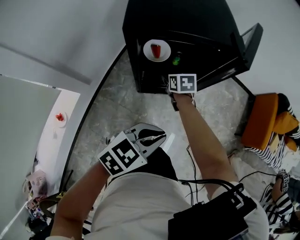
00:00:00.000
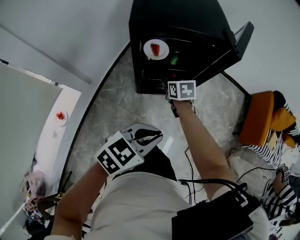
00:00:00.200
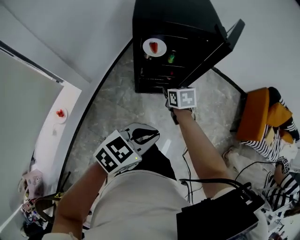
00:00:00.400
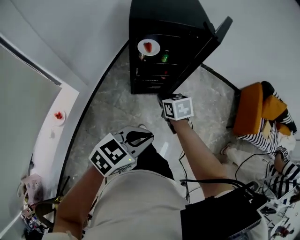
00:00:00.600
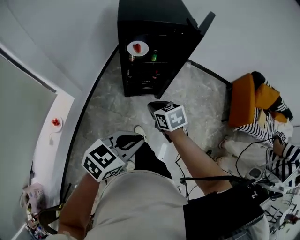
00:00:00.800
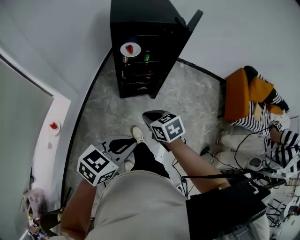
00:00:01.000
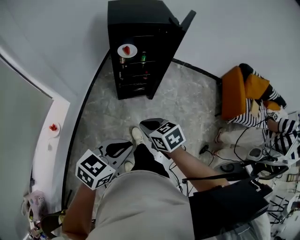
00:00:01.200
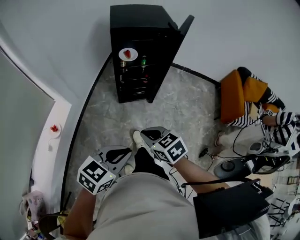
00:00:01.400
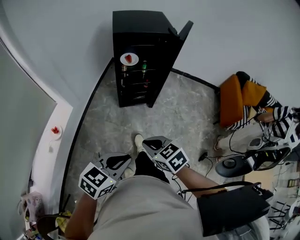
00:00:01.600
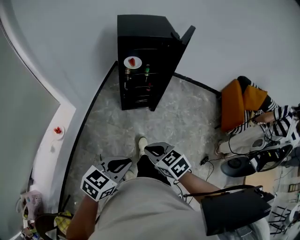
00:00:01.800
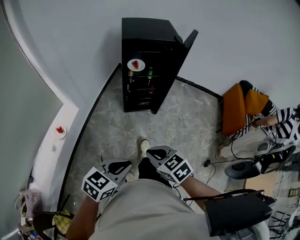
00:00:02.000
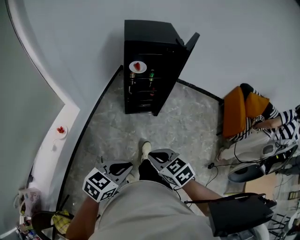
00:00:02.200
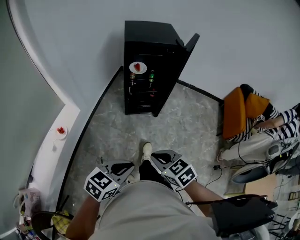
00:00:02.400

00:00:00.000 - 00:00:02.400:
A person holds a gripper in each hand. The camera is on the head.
00:00:00.000 - 00:00:01.200: The left gripper travels backward by roughly 30 cm, while the right gripper moves backward, some 50 cm, and closes its fingers.
00:00:01.200 - 00:00:02.400: The left gripper heads backward, covering roughly 5 cm, while the right gripper moves backward, roughly 10 cm.

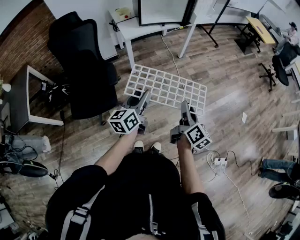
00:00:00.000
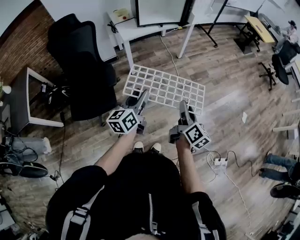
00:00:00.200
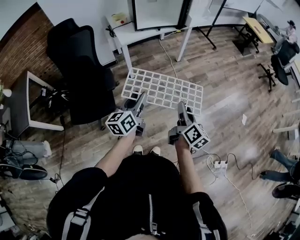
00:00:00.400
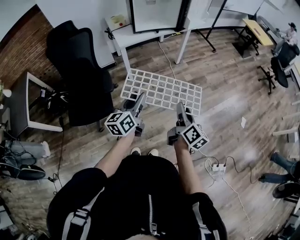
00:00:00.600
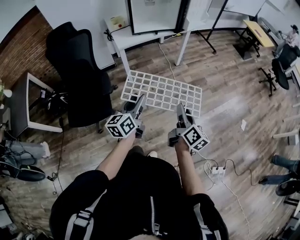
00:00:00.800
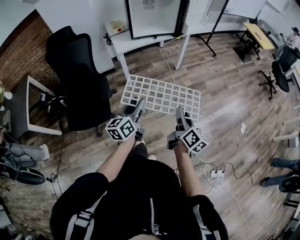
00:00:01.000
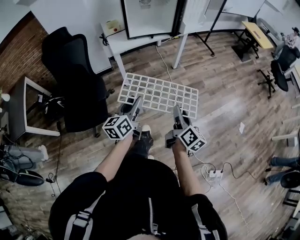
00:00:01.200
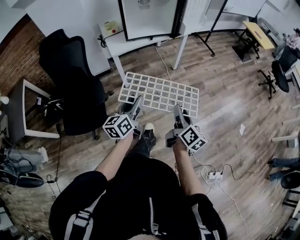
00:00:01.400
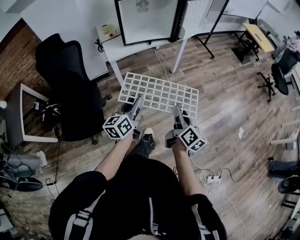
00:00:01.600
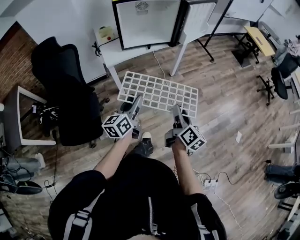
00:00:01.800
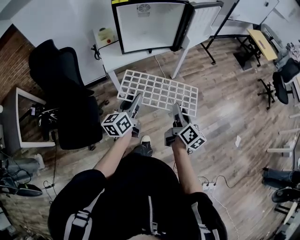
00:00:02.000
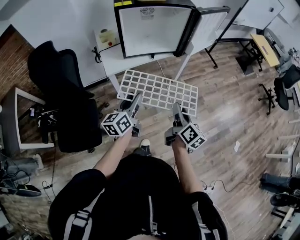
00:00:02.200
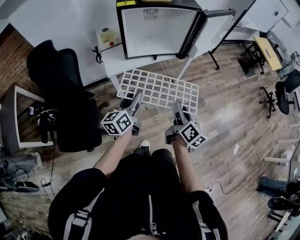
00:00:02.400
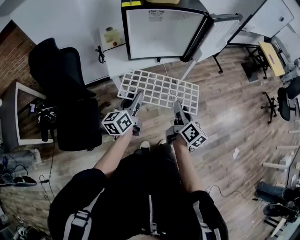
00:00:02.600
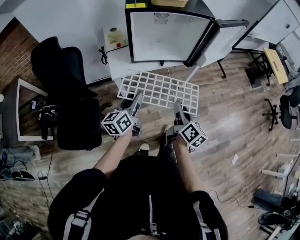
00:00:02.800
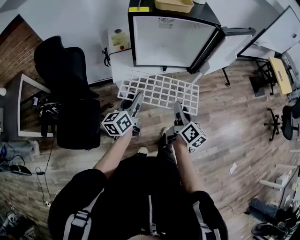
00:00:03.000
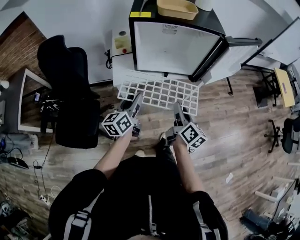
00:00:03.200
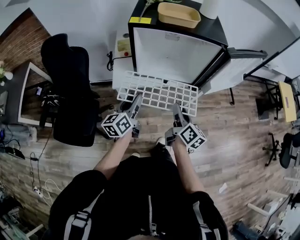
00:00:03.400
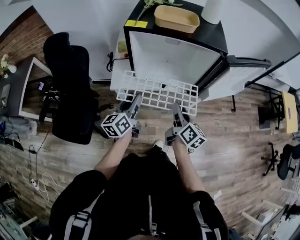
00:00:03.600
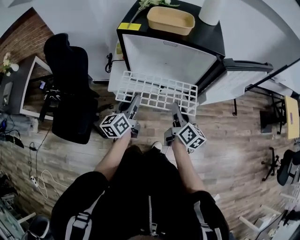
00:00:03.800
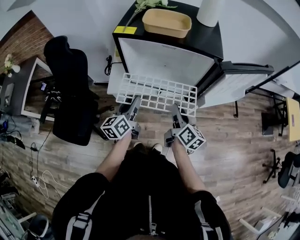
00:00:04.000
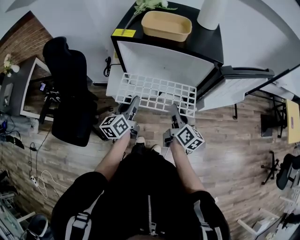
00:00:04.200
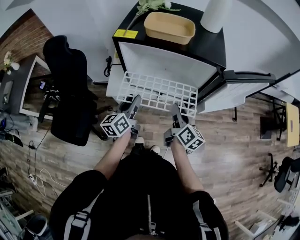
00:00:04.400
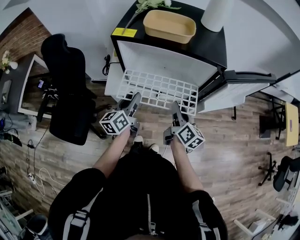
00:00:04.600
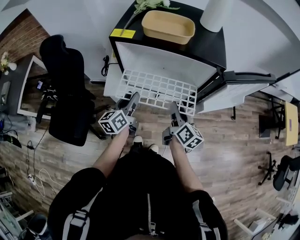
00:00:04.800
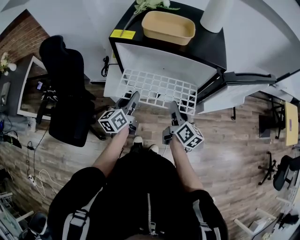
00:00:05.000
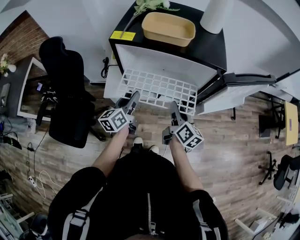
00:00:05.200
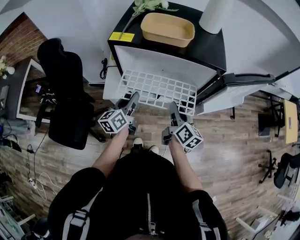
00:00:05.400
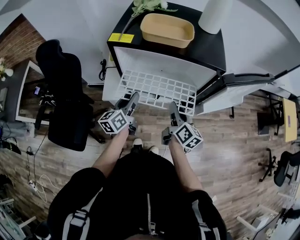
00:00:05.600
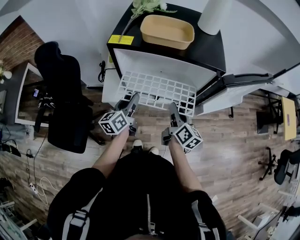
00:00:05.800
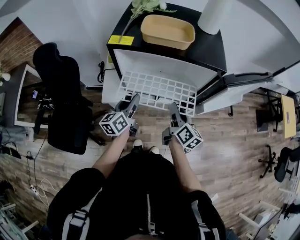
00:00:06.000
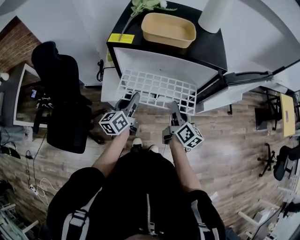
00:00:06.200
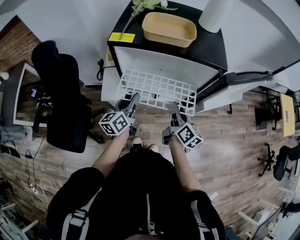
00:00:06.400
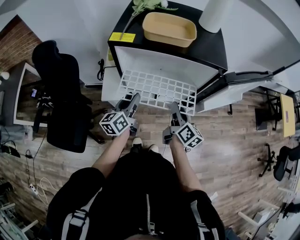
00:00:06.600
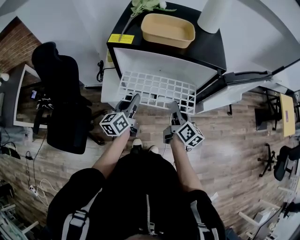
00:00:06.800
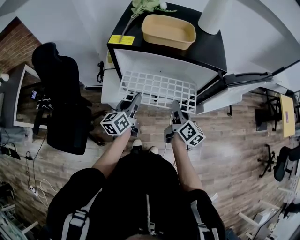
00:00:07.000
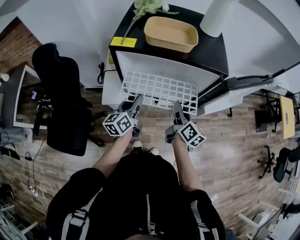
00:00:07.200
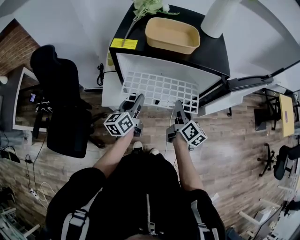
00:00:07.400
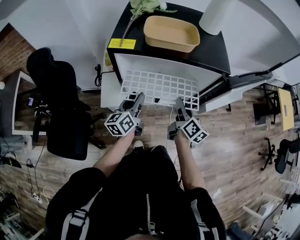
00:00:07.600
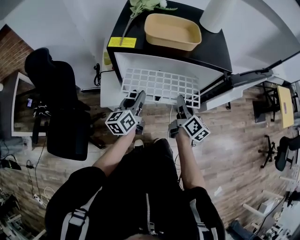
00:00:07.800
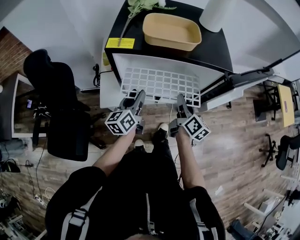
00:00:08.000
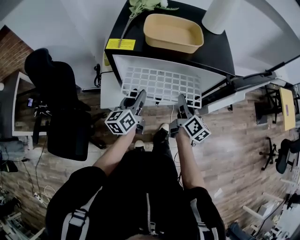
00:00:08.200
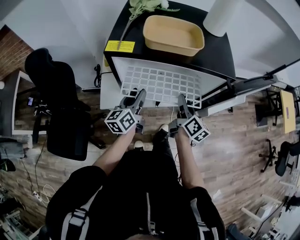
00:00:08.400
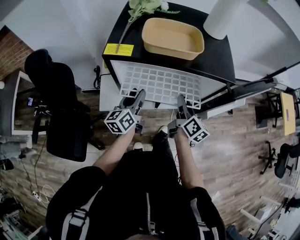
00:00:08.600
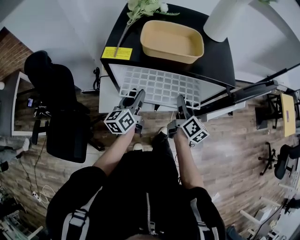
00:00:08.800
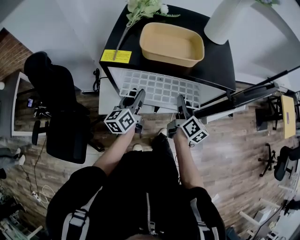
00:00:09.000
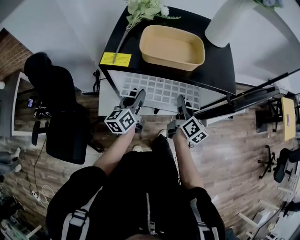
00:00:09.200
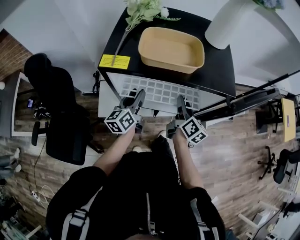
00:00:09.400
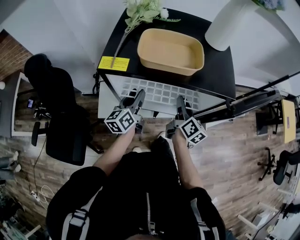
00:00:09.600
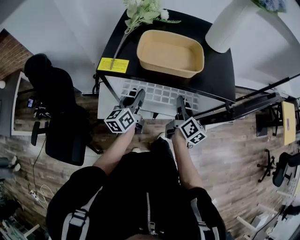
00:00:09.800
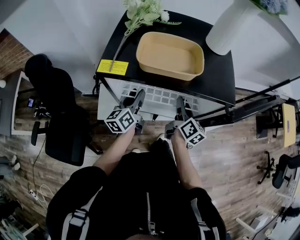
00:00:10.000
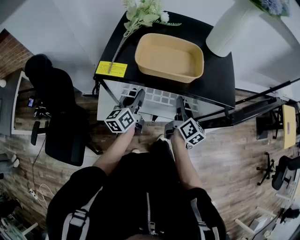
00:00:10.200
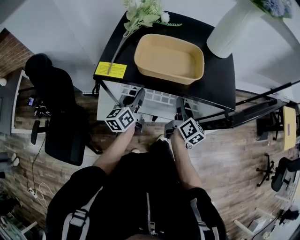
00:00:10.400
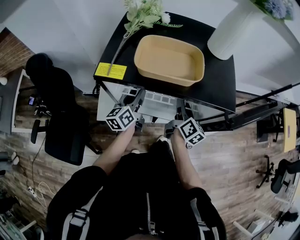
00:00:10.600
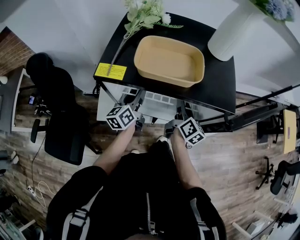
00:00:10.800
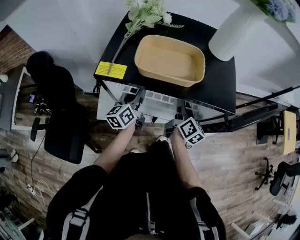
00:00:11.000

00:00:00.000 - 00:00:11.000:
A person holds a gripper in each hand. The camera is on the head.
00:00:00.000 - 00:00:01.600: Both grippers move forward, approximately 20 cm.
00:00:01.600 - 00:00:03.200: The two grippers go approximately 35 cm forward.
00:00:03.200 - 00:00:04.800: Both grippers travel together forward and to the right, about 15 cm.
00:00:04.800 - 00:00:07.800: The grippers make only small movements.
00:00:07.800 - 00:00:09.400: Both grippers travel together forward, roughly 10 cm.
00:00:09.400 - 00:00:11.000: The grippers make only small movements.

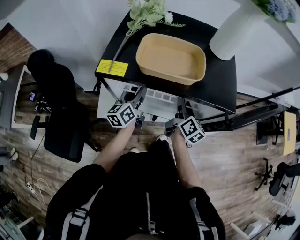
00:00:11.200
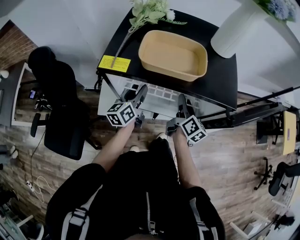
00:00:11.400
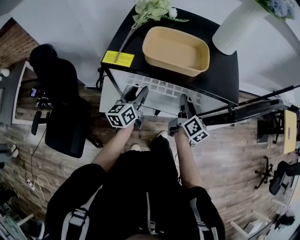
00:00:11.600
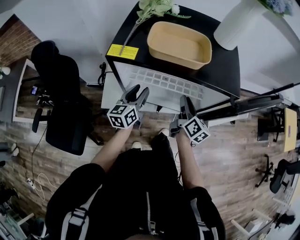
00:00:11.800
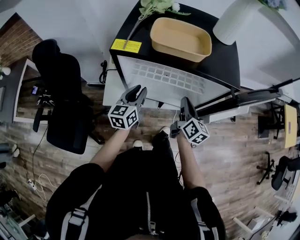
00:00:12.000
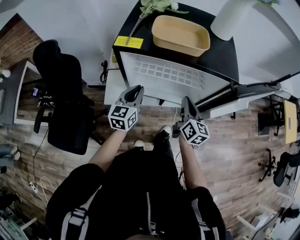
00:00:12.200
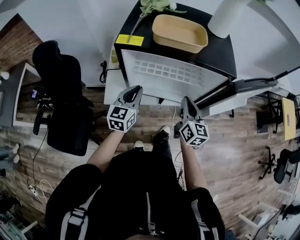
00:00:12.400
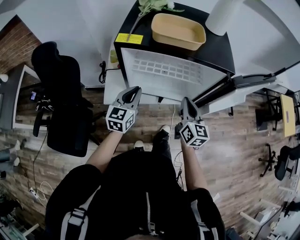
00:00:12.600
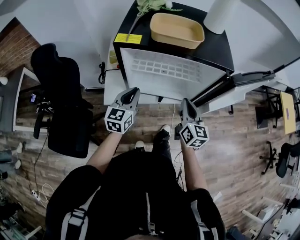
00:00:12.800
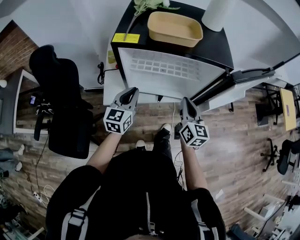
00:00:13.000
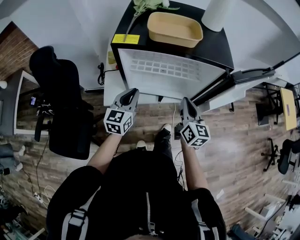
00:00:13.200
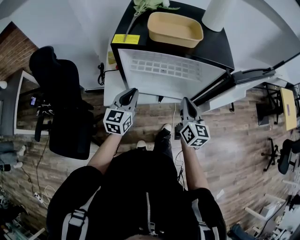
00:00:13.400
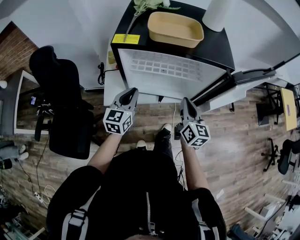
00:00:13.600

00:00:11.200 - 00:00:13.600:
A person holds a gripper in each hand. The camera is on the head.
00:00:11.200 - 00:00:12.400: The two grippers go approximately 15 cm backward. The left gripper changes its angle by roughly 30 degrees, and closes up. The right gripper changes its angle by roughly 30 degrees, and closes up.
00:00:12.400 - 00:00:13.600: The grippers stay close to where they were, moving slightly.

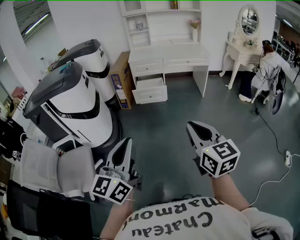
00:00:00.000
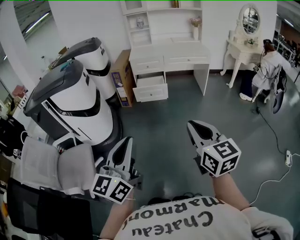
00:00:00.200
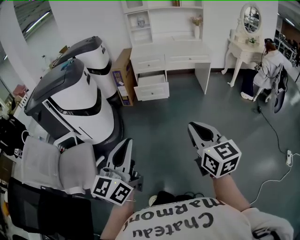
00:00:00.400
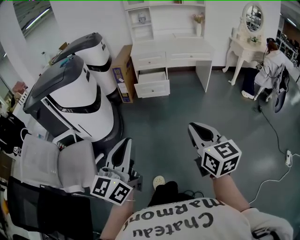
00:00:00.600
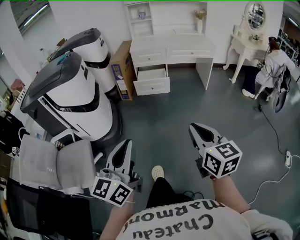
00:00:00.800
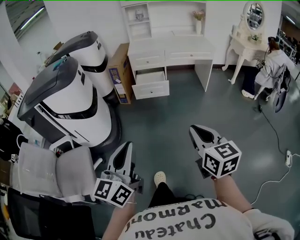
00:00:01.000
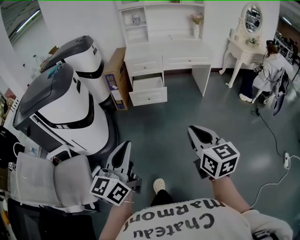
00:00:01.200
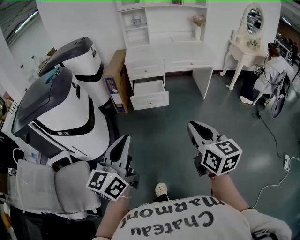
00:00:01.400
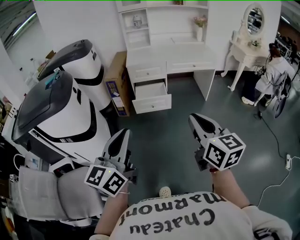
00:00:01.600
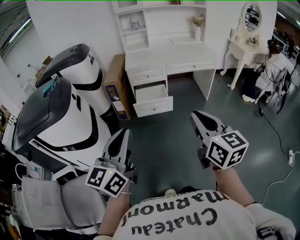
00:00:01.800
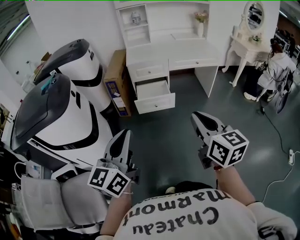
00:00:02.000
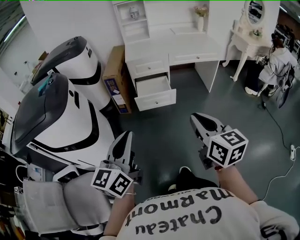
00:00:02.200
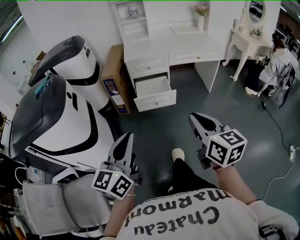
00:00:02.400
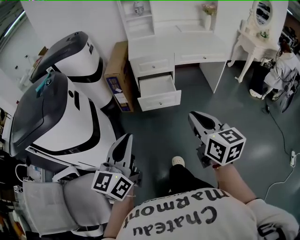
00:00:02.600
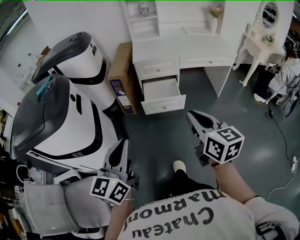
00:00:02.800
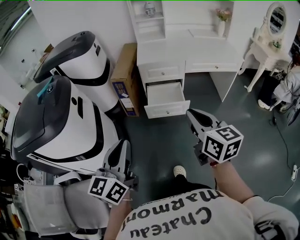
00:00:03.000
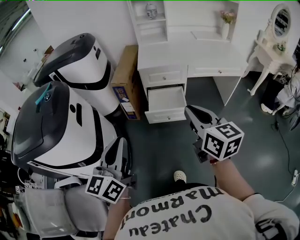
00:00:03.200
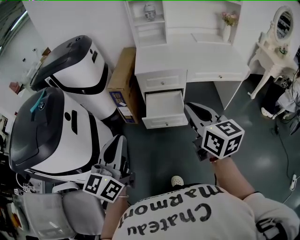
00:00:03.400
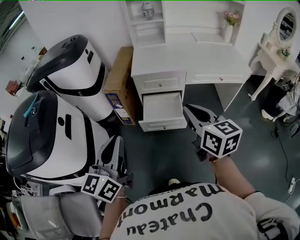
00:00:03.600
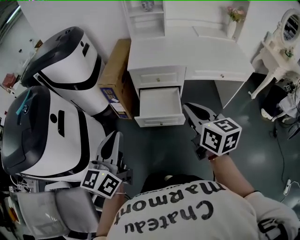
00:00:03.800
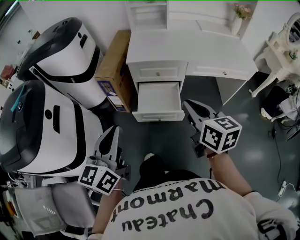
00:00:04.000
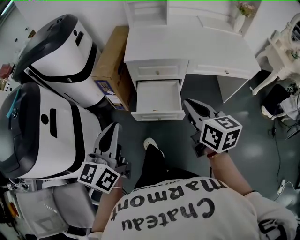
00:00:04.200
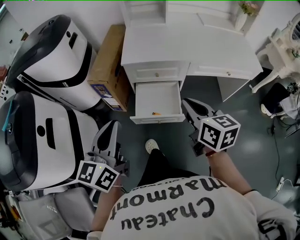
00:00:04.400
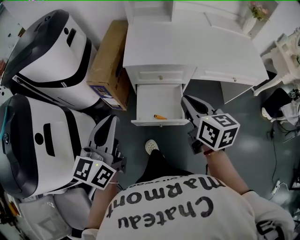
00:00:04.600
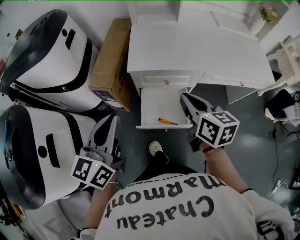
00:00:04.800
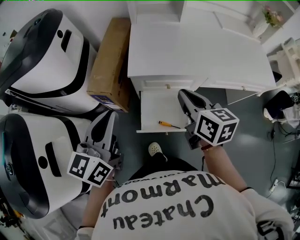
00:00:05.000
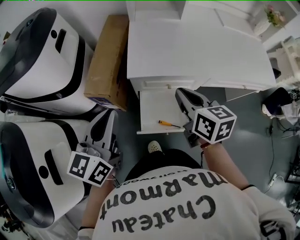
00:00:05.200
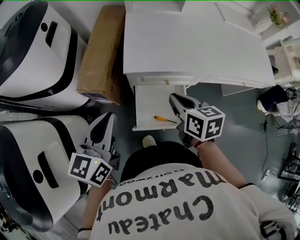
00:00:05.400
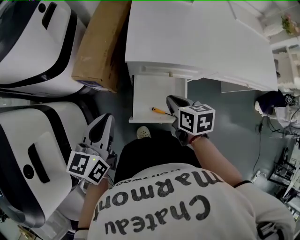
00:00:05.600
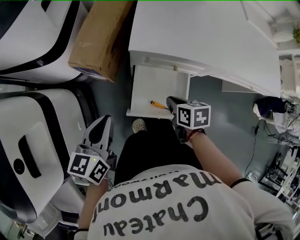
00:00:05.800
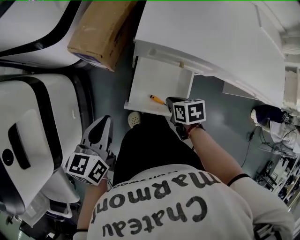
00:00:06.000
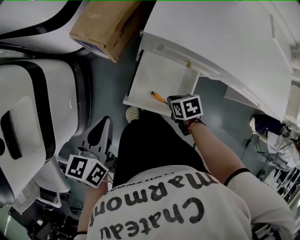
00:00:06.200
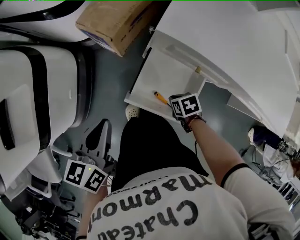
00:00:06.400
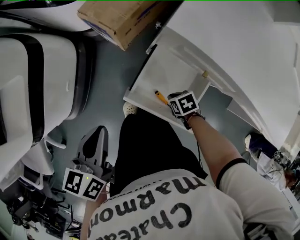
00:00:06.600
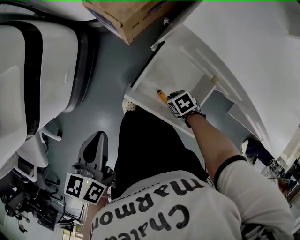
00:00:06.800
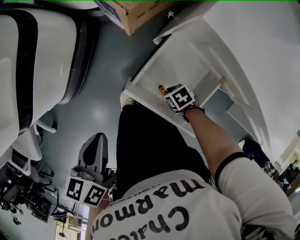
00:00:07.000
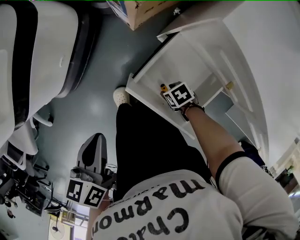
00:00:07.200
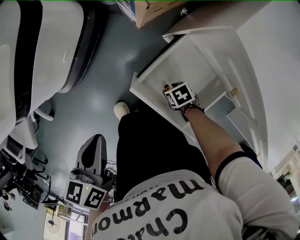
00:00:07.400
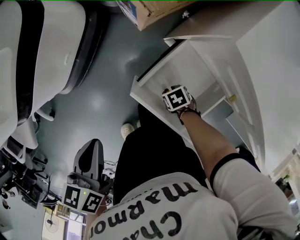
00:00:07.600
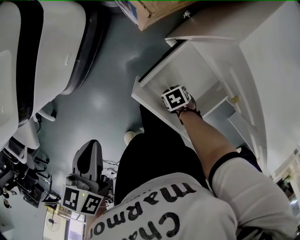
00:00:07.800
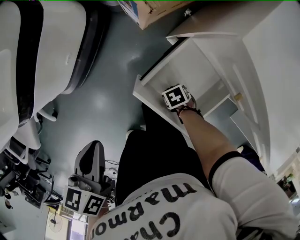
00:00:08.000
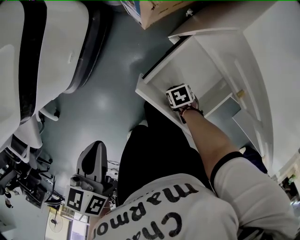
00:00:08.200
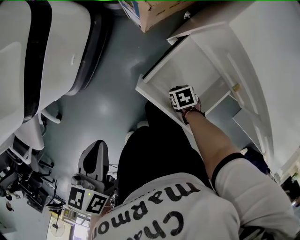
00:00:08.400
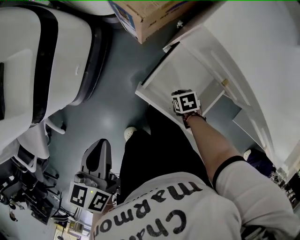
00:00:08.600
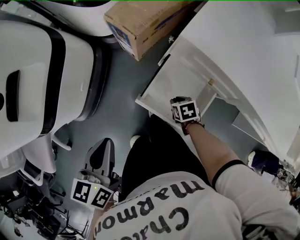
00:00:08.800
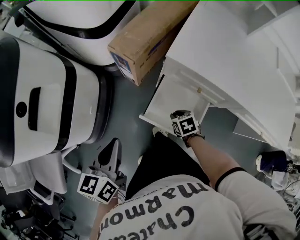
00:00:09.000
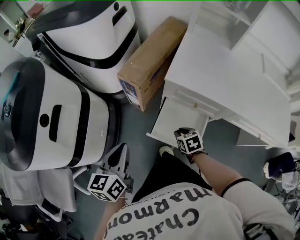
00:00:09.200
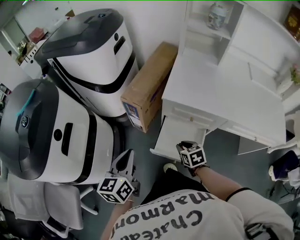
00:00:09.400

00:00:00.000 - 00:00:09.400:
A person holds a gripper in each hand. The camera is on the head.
00:00:00.000 - 00:00:01.600: The grippers both shift forward by some 25 cm.
00:00:01.600 - 00:00:03.200: The grippers both shift forward by some 30 cm.
00:00:03.200 - 00:00:04.800: Both grippers travel together forward, approximately 40 cm.
00:00:04.800 - 00:00:06.200: The left gripper is displaced downward by about 25 cm, and swivels roughly 40 degrees, while the right gripper shifts approximately 35 cm downward, and tips its fingers downward by roughly 50 degrees.
00:00:06.200 - 00:00:07.800: The left gripper ends up about 10 cm from where it was, and turns by roughly 30 degrees; the right gripper shifts some 20 cm downward, turns by roughly 40 degrees, and opens its fingers.
00:00:07.800 - 00:00:09.400: The left gripper heads upward, covering about 20 cm, and tips its fingers upward by about 30 degrees. The right gripper moves upward, roughly 35 cm, and rotates approximately 50 degrees.
